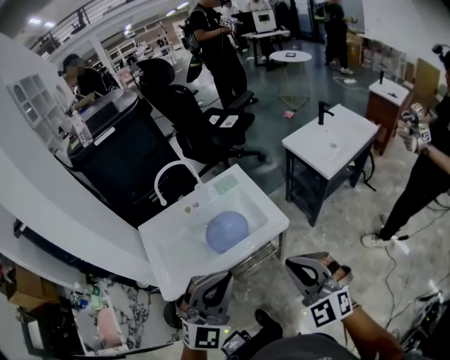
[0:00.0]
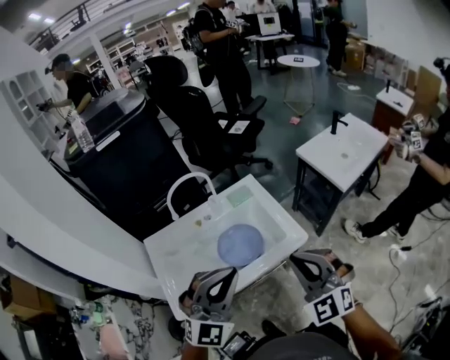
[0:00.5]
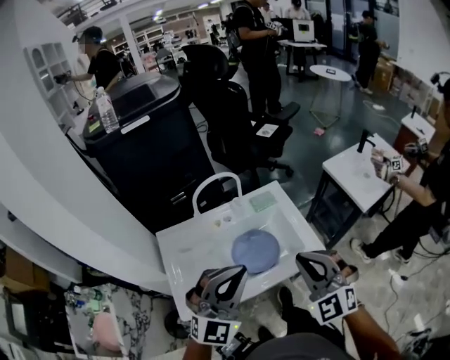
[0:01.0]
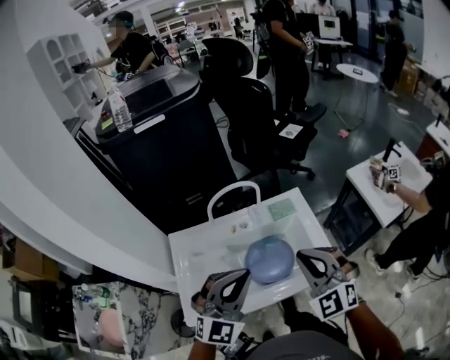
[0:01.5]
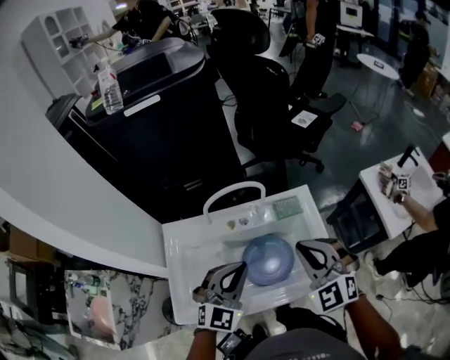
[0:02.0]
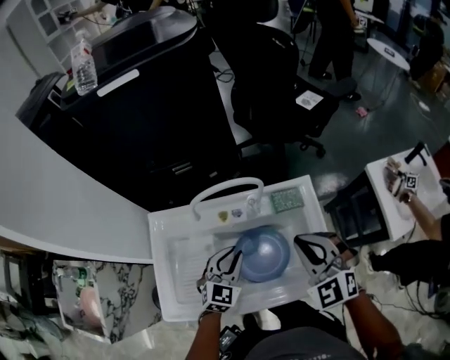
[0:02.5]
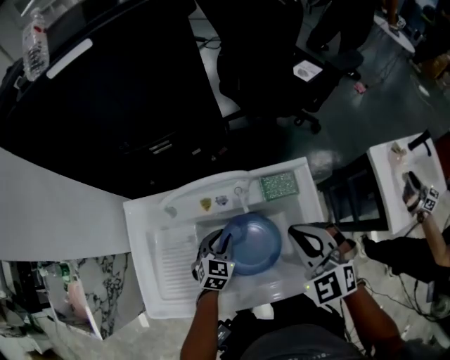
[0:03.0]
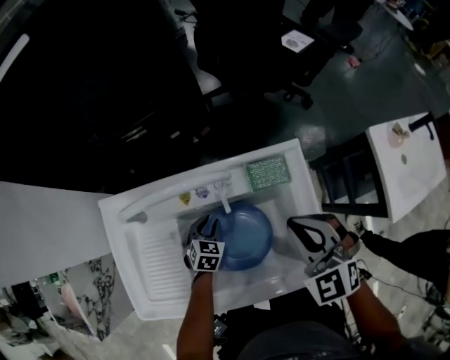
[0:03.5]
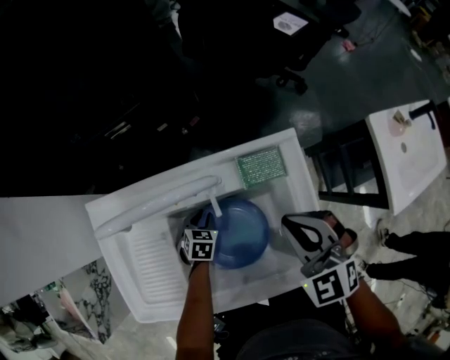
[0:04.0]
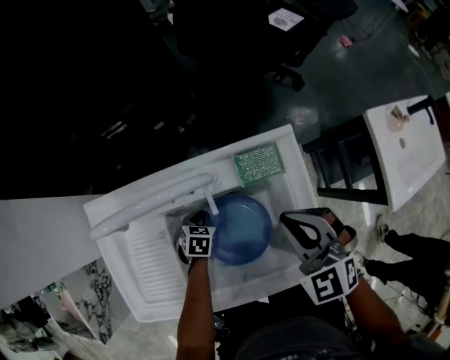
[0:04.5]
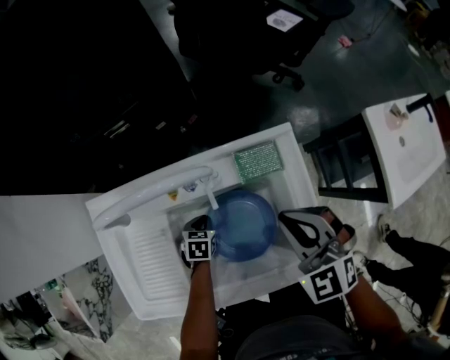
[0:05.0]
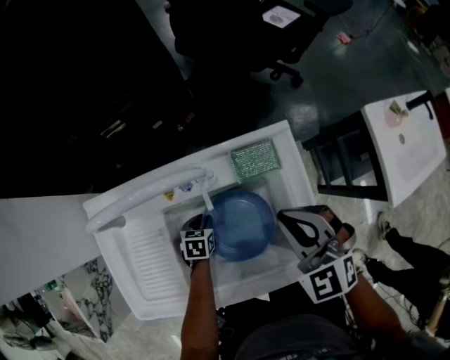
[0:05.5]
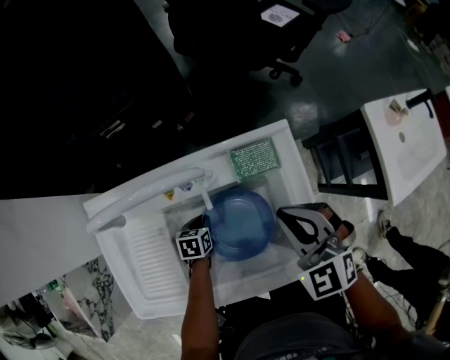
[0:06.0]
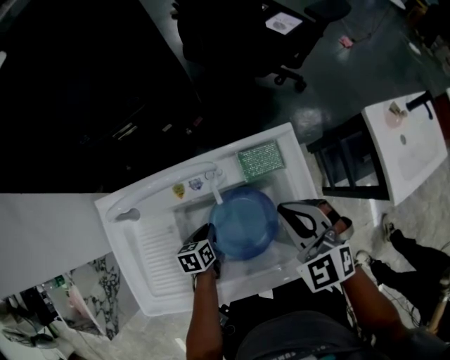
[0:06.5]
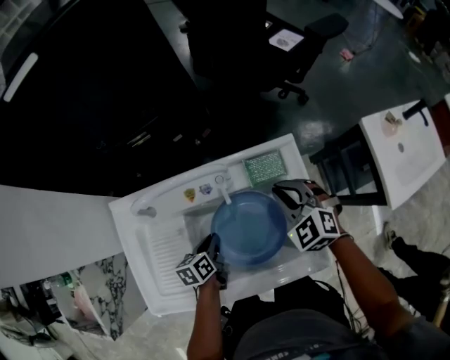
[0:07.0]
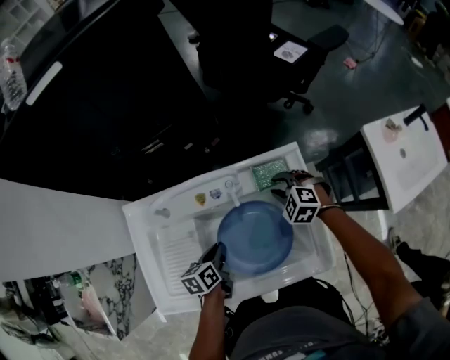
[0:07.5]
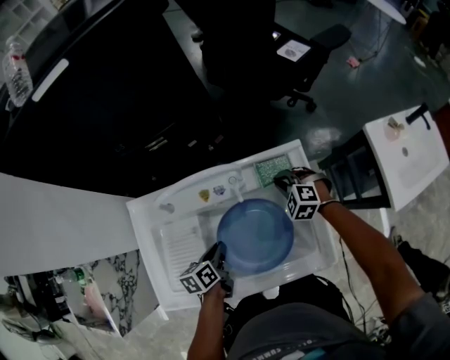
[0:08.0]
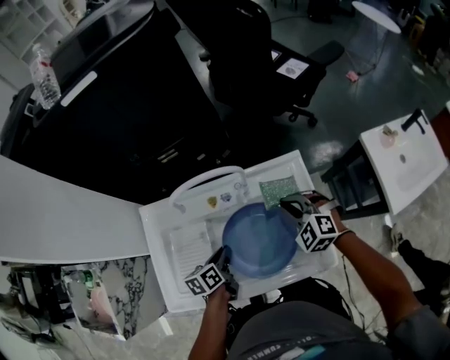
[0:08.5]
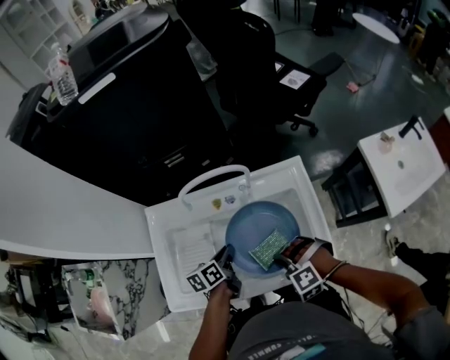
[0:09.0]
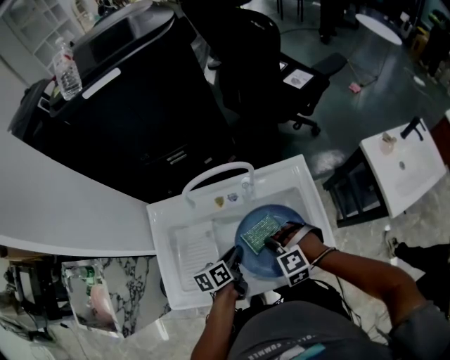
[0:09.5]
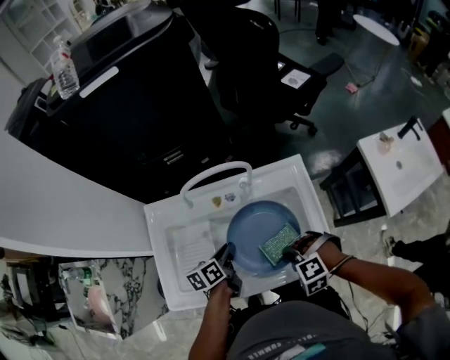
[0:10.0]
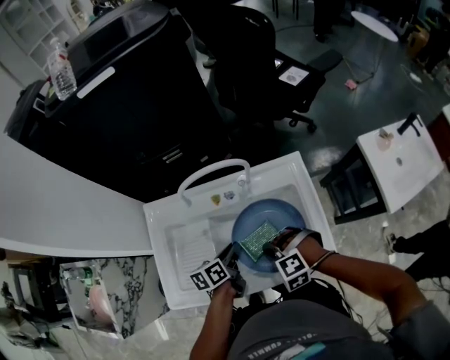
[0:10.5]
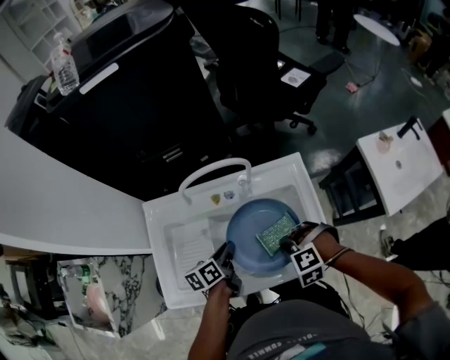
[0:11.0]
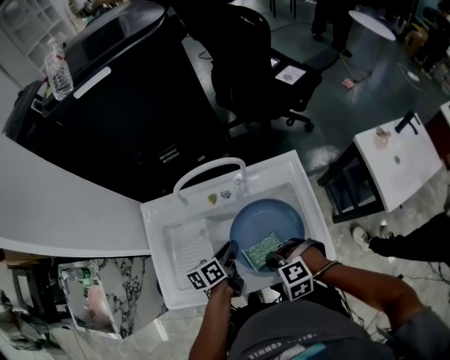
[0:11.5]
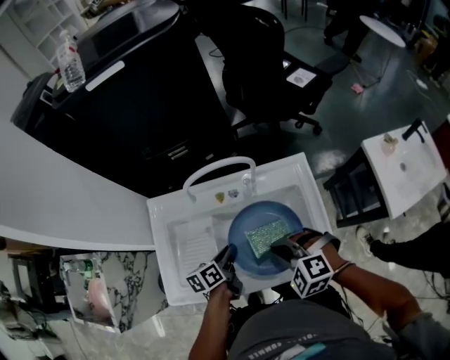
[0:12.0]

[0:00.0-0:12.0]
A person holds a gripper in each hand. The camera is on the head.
0:00.0 to 0:02.0: The left gripper travels forward, to the left and downward by approximately 35 cm, and rotates about 30 degrees, while the right gripper shifts approximately 35 cm forward and to the left.
0:02.0 to 0:04.0: The left gripper travels downward by some 40 cm, tips its fingers downward by about 50 degrees, and opens up, while the right gripper shifts approximately 20 cm downward and forward.
0:04.0 to 0:06.0: The left gripper swivels approximately 20 degrees.
0:06.0 to 0:08.0: The right gripper is displaced downward and forward by some 15 cm, turns by approximately 30 degrees, and opens, then closes again. The left gripper goes some 15 cm upward, and swivels some 30 degrees.
0:08.0 to 0:10.0: The right gripper swings forward and backward, roughly 25 cm each way, with 2 reversals, and swivels approximately 30 degrees.
0:10.0 to 0:12.0: The right gripper goes some 5 cm upward, and rotates some 20 degrees.

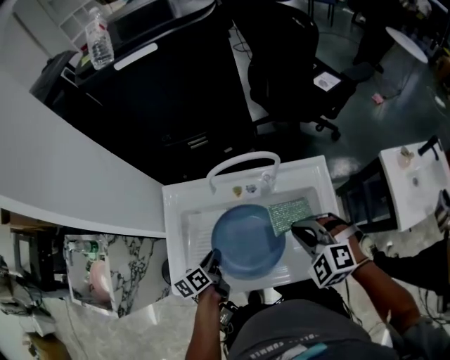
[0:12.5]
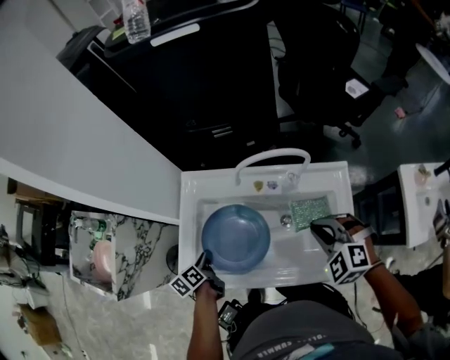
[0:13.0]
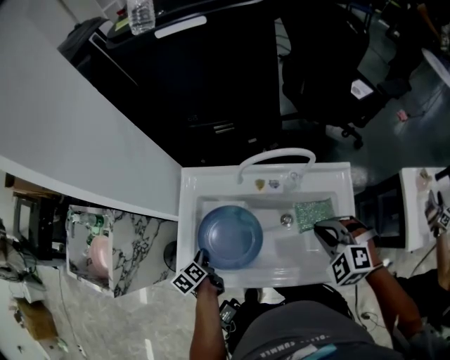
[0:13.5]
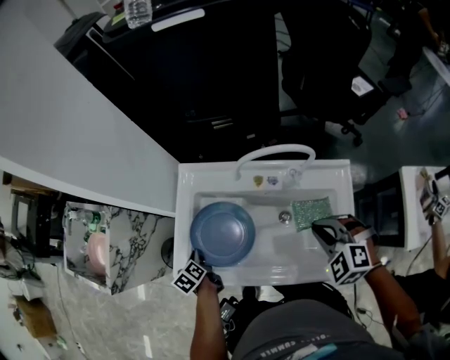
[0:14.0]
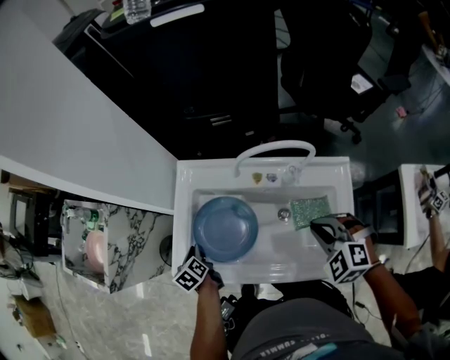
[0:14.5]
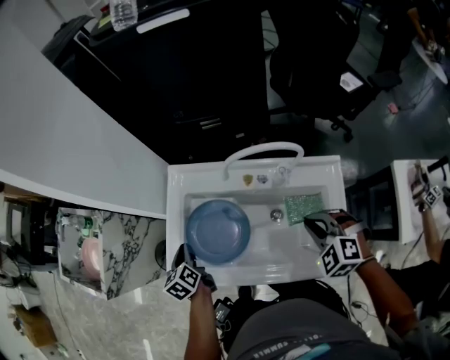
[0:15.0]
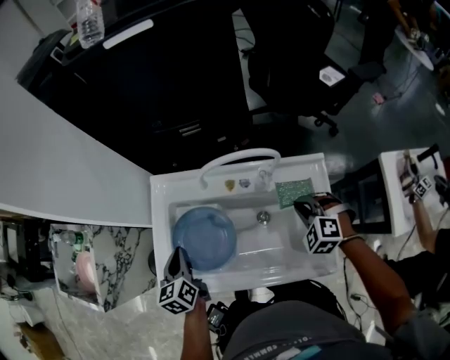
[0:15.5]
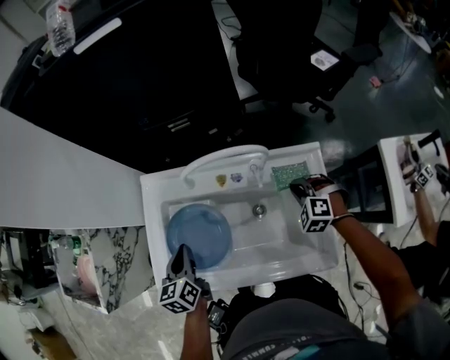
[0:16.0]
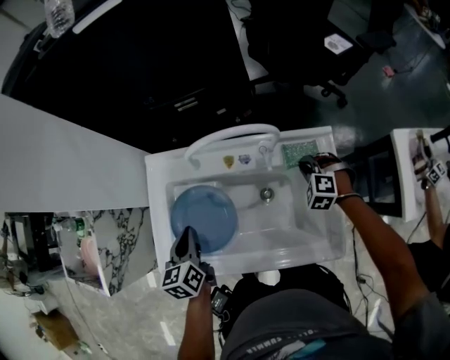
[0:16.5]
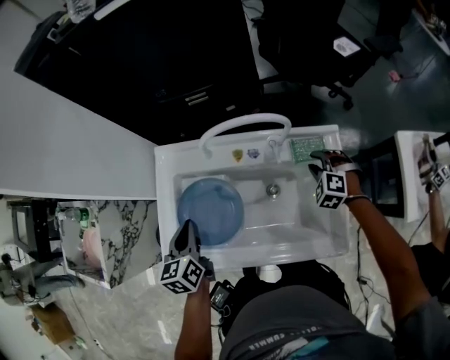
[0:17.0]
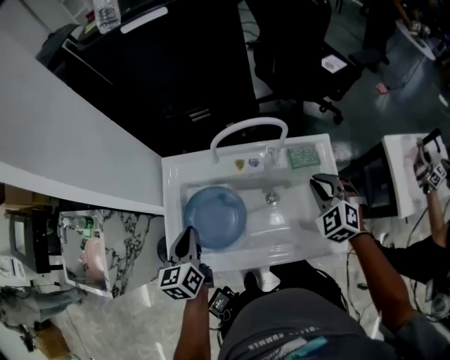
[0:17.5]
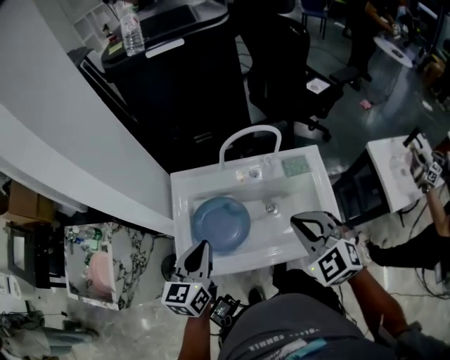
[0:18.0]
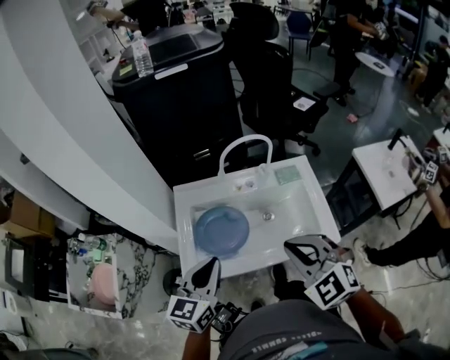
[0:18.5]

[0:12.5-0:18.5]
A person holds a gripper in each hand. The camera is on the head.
0:12.5 to 0:14.5: The left gripper heads to the left and downward, covering approximately 15 cm, and swivels approximately 30 degrees.
0:14.5 to 0:16.5: The left gripper travels upward and to the right by approximately 20 cm, and turns by approximately 30 degrees. Meanwhile the right gripper travels downward, to the right and forward by some 25 cm.
0:16.5 to 0:18.5: The right gripper shifts some 50 cm upward, backward and to the left, angles its fingers upward, by roughly 30 degrees, and opens and closes again. The left gripper is displaced upward and backward by some 25 cm, and turns by some 40 degrees.

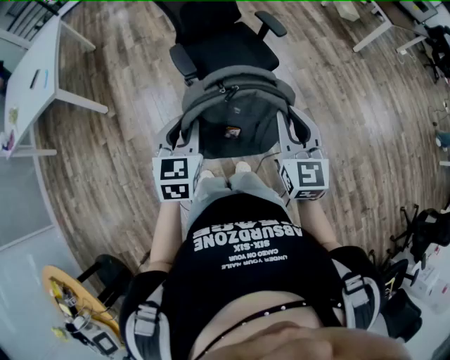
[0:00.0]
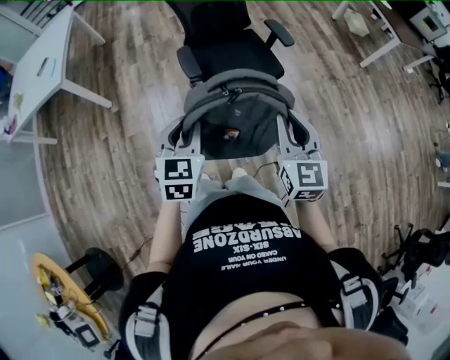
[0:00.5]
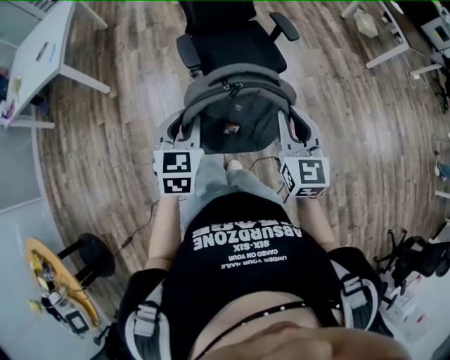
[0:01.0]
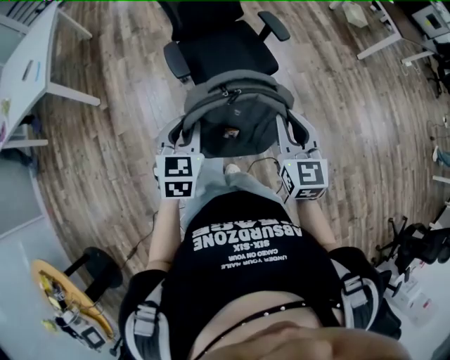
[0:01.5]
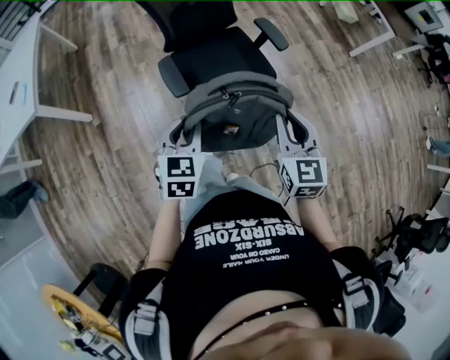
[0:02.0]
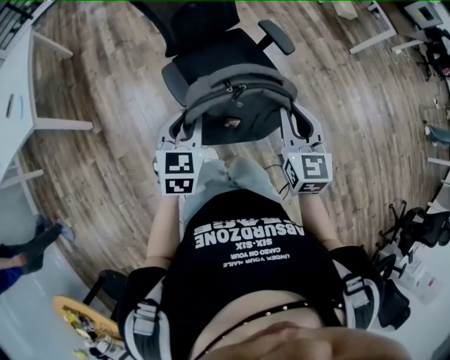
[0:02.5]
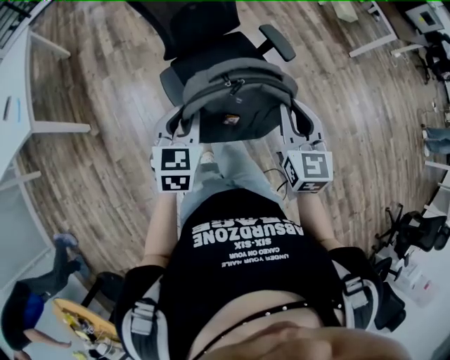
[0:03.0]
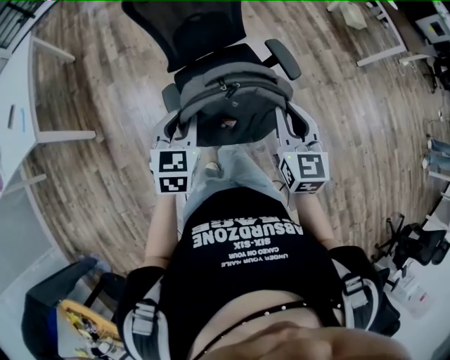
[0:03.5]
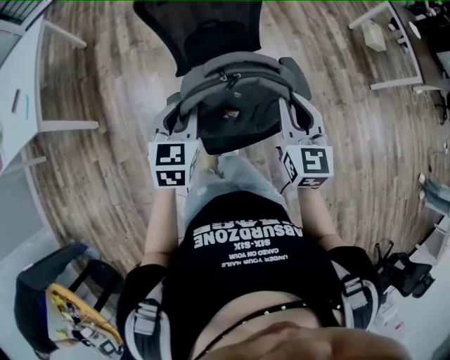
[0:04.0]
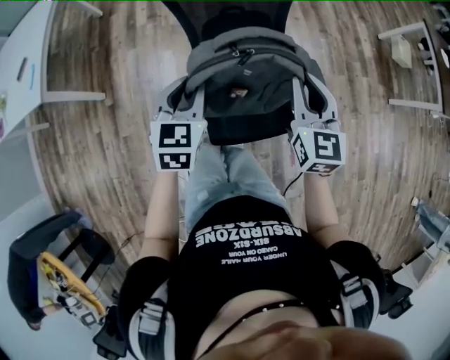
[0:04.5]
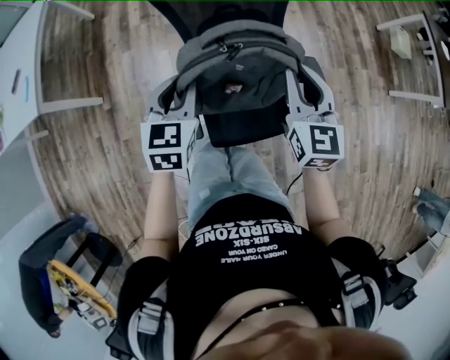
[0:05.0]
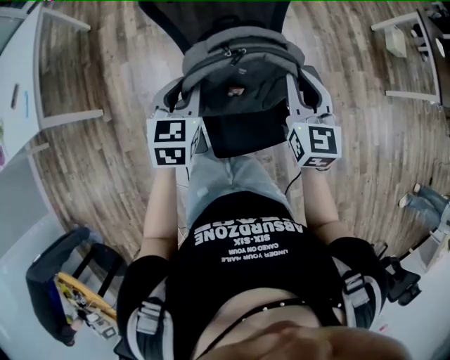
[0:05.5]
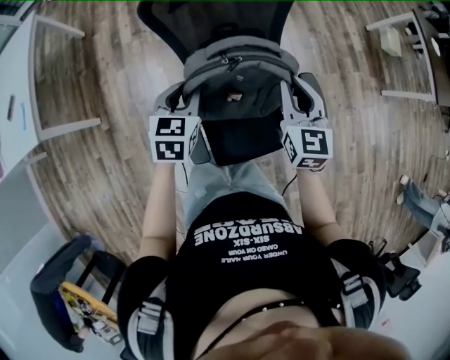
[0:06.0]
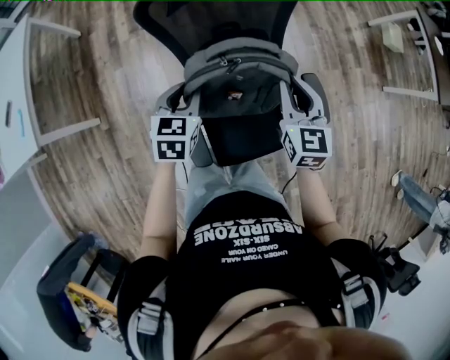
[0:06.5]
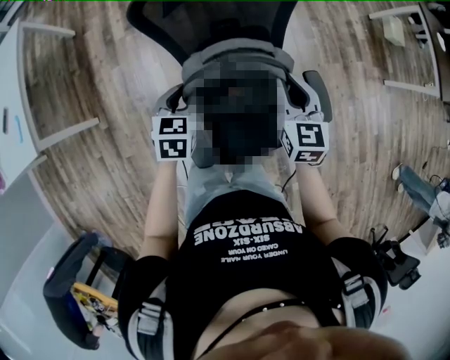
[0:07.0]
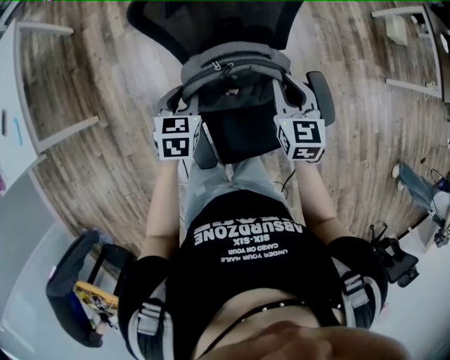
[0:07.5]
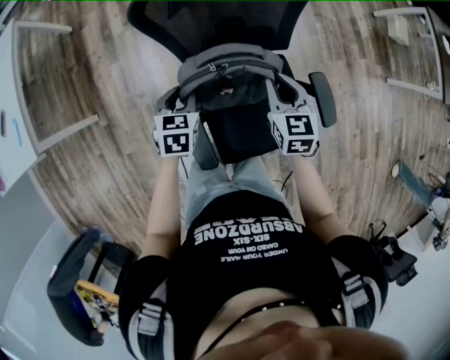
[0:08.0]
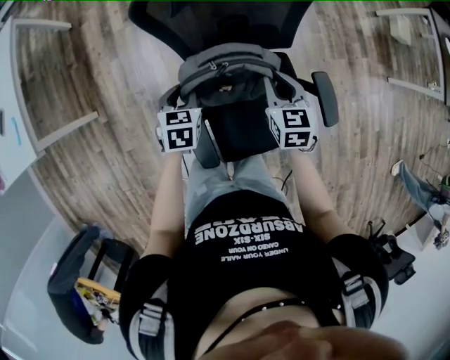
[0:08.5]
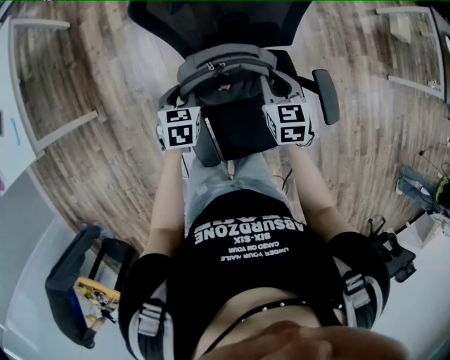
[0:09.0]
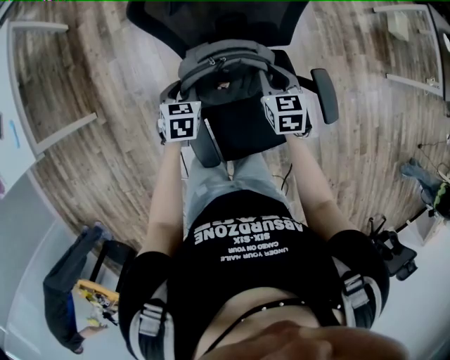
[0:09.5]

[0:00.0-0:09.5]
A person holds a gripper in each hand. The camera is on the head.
0:00.0 to 0:02.0: Both grippers travel together forward, about 15 cm.
0:02.0 to 0:04.0: Both grippers travel together forward, roughly 30 cm.
0:04.0 to 0:05.5: The grippers both shift forward by about 15 cm.
0:05.5 to 0:07.5: Both grippers travel together downward and forward, about 15 cm.
0:07.5 to 0:09.5: Both grippers travel together downward, about 10 cm.
